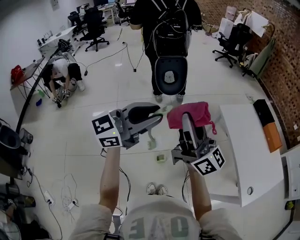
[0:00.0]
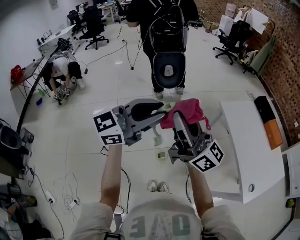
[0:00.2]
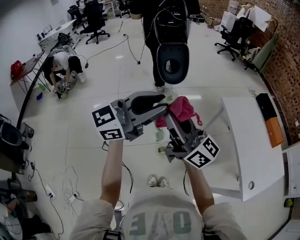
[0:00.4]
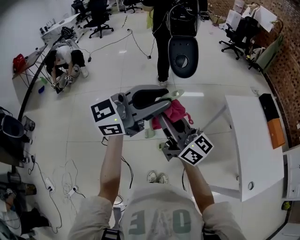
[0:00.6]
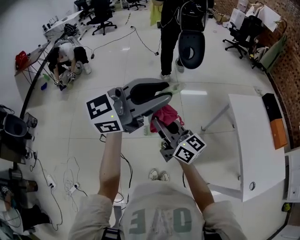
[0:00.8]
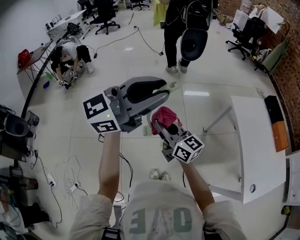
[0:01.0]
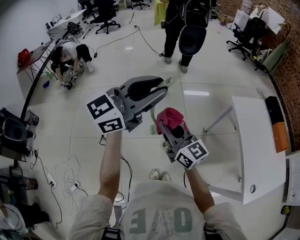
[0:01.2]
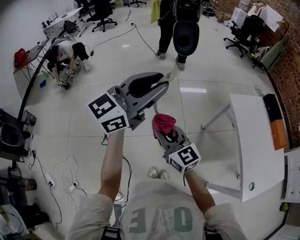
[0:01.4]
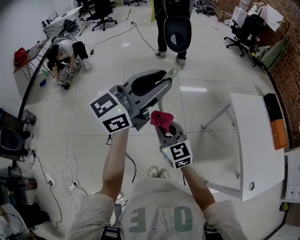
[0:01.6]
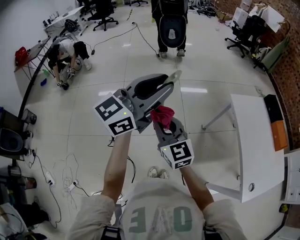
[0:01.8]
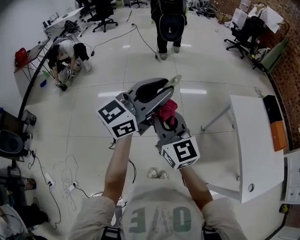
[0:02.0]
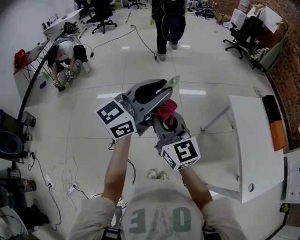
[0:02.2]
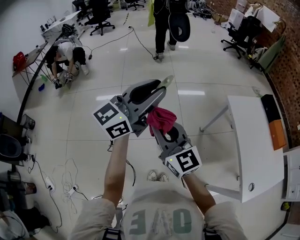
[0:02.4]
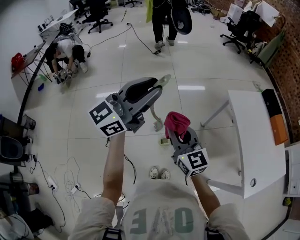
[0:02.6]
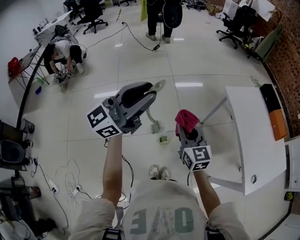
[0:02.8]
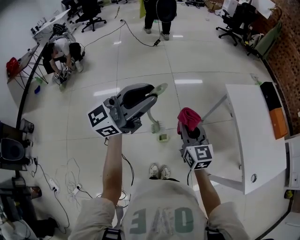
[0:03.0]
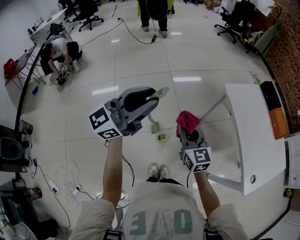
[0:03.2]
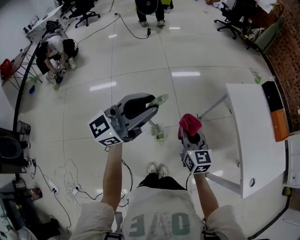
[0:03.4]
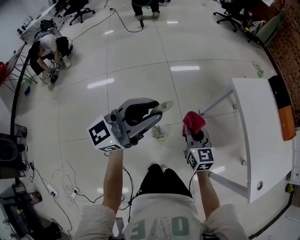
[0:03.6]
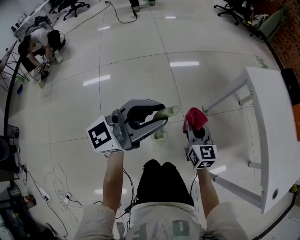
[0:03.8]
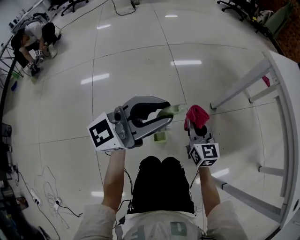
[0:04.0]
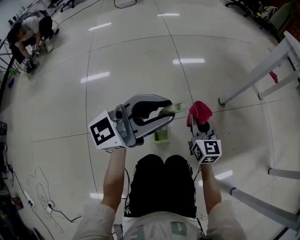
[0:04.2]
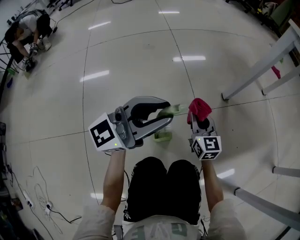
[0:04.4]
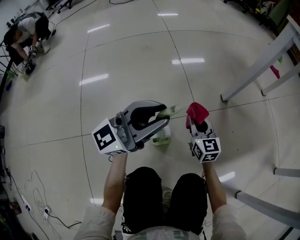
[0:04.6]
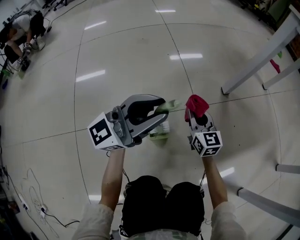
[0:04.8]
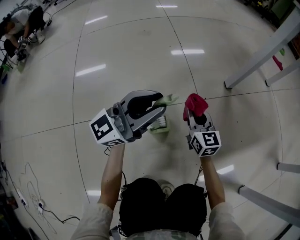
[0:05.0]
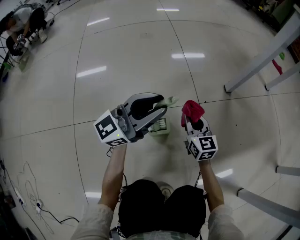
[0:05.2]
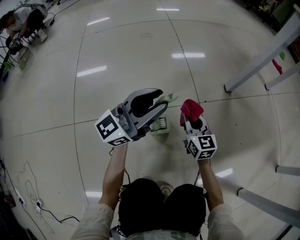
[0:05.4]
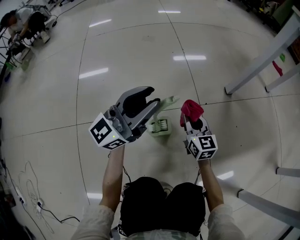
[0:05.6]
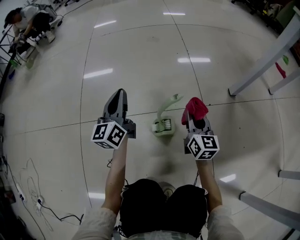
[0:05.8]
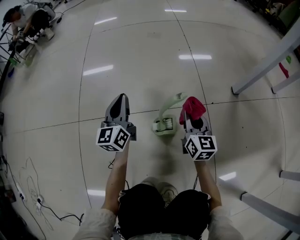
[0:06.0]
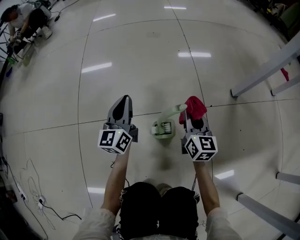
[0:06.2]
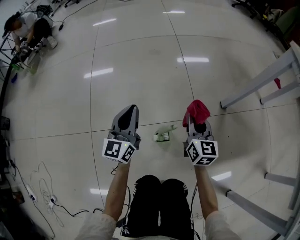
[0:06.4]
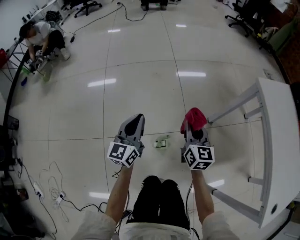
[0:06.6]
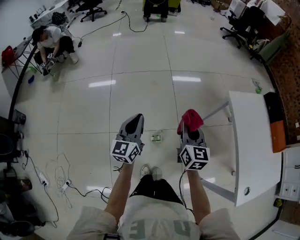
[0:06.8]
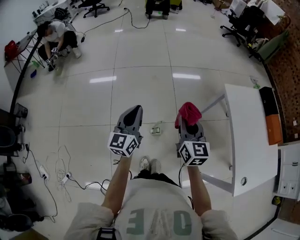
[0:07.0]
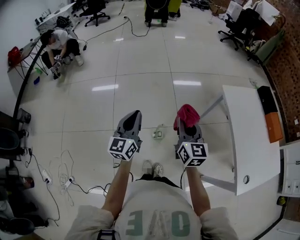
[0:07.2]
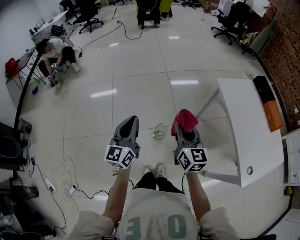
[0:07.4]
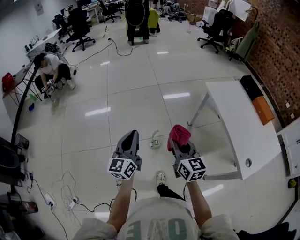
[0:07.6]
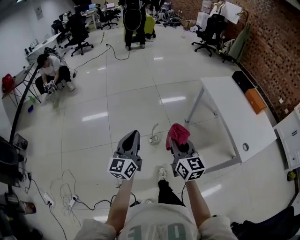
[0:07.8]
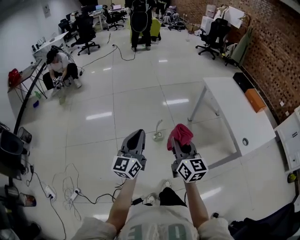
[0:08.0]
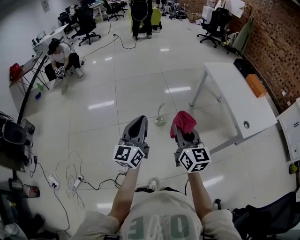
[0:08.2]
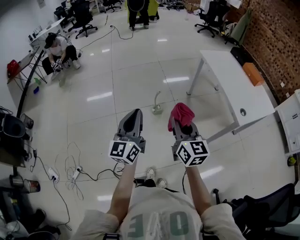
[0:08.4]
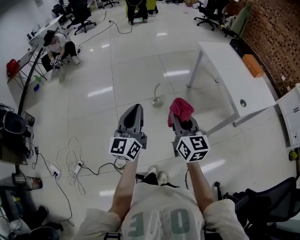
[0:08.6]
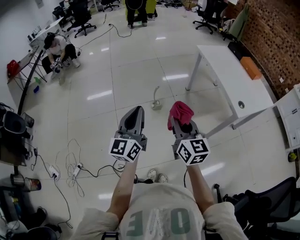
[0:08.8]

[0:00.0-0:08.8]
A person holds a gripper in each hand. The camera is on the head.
0:00.0 to 0:01.4: The right gripper heads downward and to the left, covering roughly 20 cm, and tilts its fingers roughly 40 degrees downward.
0:01.4 to 0:03.0: The right gripper heads to the right and forward, covering roughly 15 cm, and turns by approximately 30 degrees.
0:03.0 to 0:04.4: The grippers both shift downward by approximately 70 cm.
0:04.4 to 0:05.8: The right gripper moves downward, approximately 10 cm, while the left gripper shifts roughly 20 cm downward, and swivels roughly 60 degrees.
0:05.8 to 0:07.4: Both grippers travel together upward, roughly 70 cm.
0:07.4 to 0:08.8: The pair of grippers is taken backward, approximately 40 cm.

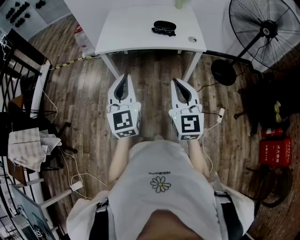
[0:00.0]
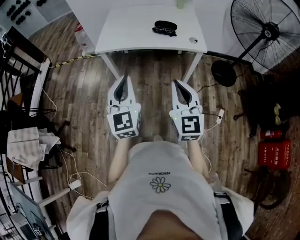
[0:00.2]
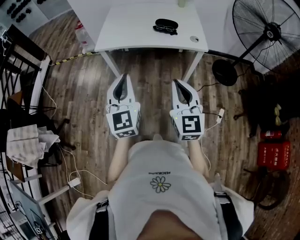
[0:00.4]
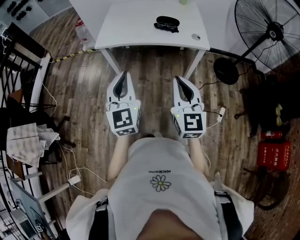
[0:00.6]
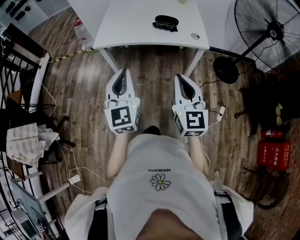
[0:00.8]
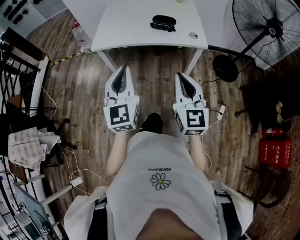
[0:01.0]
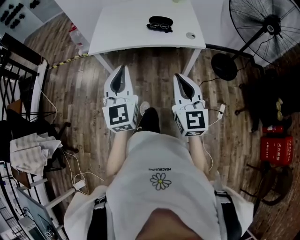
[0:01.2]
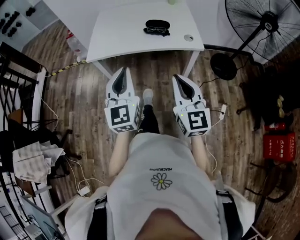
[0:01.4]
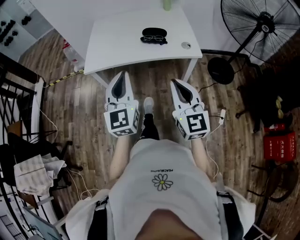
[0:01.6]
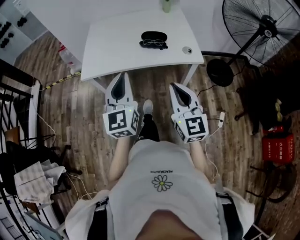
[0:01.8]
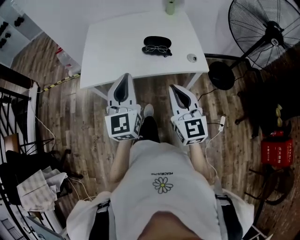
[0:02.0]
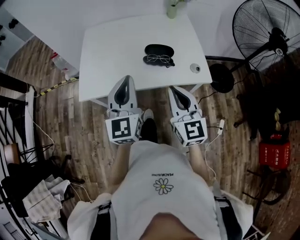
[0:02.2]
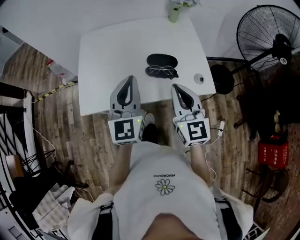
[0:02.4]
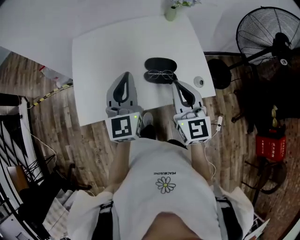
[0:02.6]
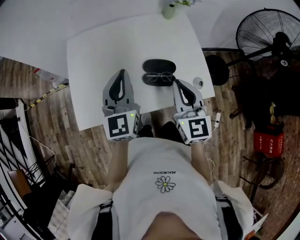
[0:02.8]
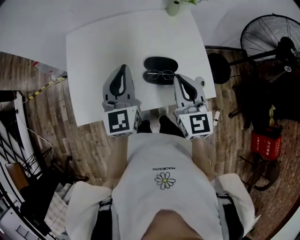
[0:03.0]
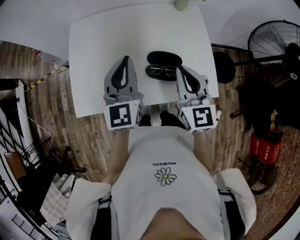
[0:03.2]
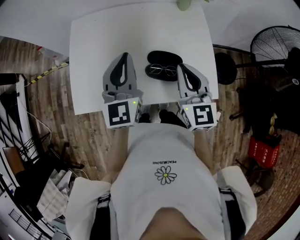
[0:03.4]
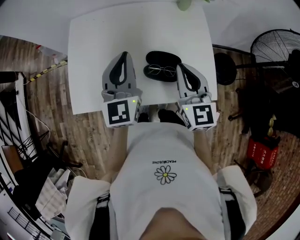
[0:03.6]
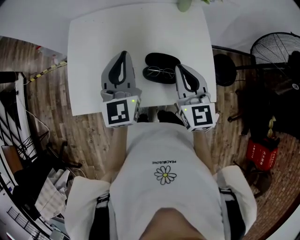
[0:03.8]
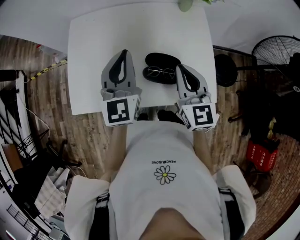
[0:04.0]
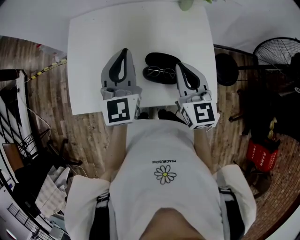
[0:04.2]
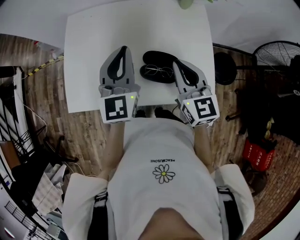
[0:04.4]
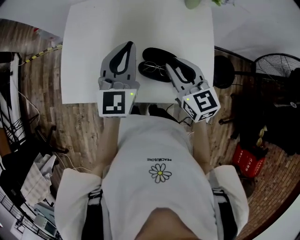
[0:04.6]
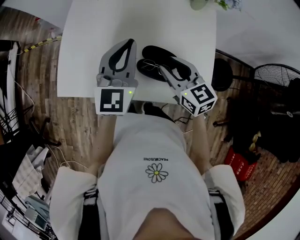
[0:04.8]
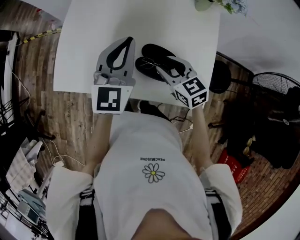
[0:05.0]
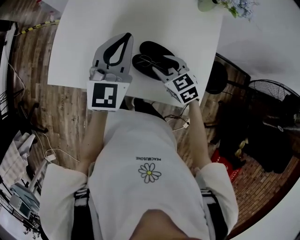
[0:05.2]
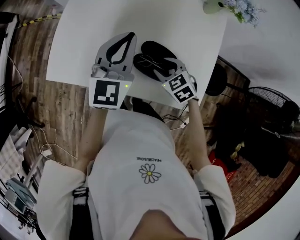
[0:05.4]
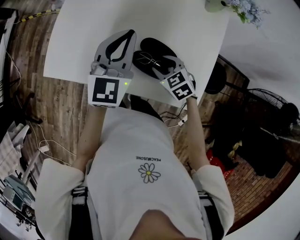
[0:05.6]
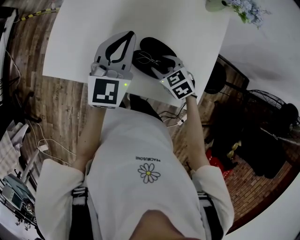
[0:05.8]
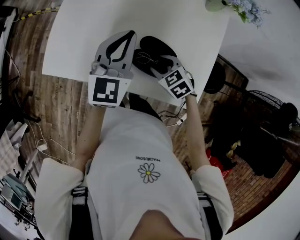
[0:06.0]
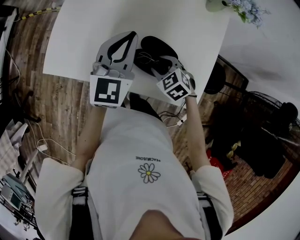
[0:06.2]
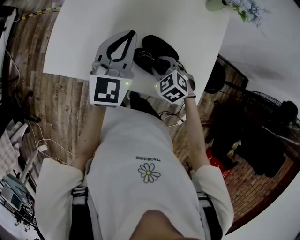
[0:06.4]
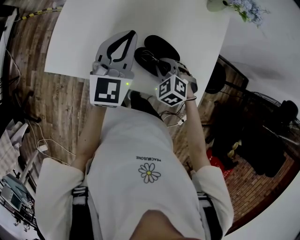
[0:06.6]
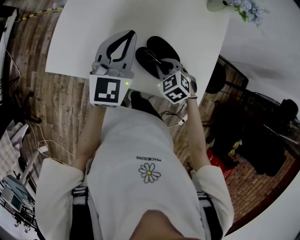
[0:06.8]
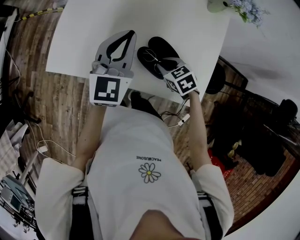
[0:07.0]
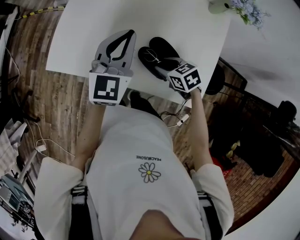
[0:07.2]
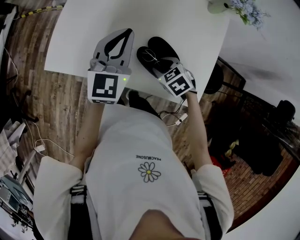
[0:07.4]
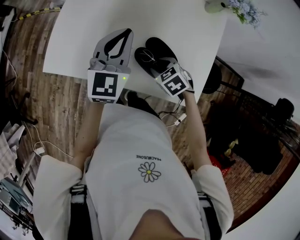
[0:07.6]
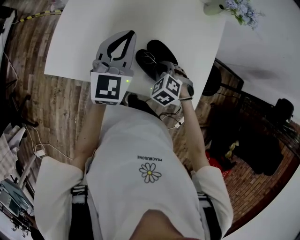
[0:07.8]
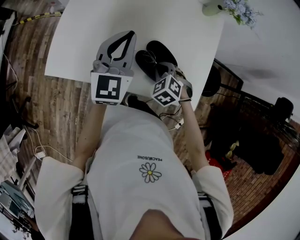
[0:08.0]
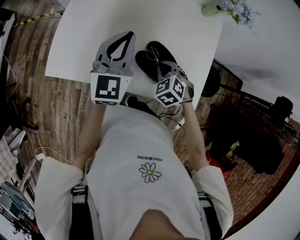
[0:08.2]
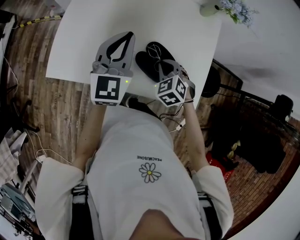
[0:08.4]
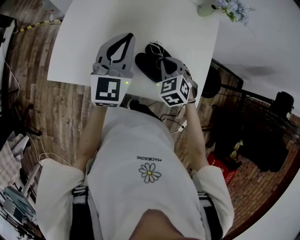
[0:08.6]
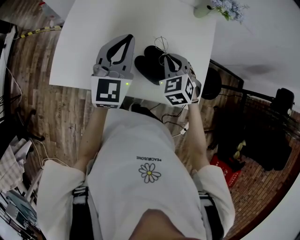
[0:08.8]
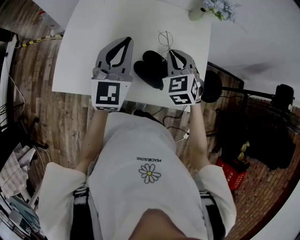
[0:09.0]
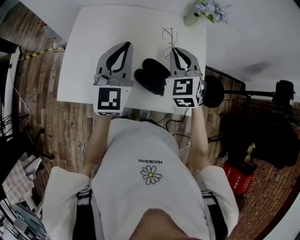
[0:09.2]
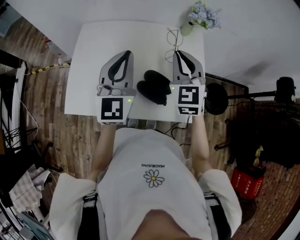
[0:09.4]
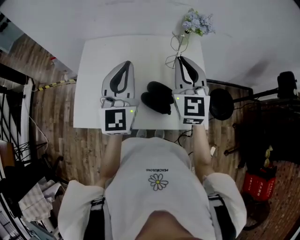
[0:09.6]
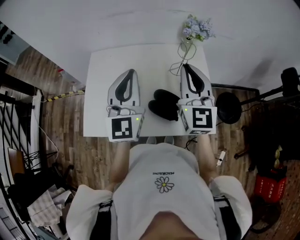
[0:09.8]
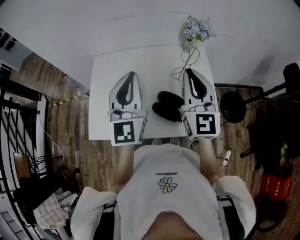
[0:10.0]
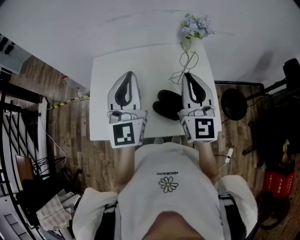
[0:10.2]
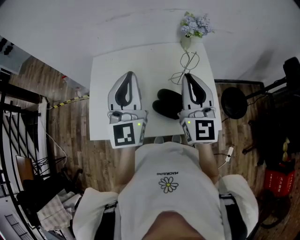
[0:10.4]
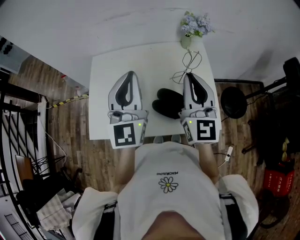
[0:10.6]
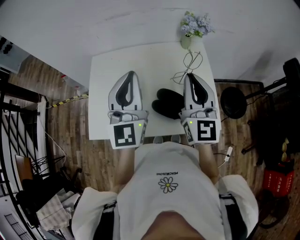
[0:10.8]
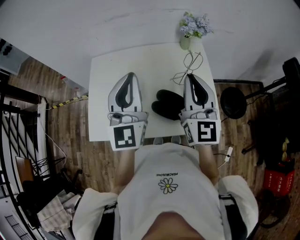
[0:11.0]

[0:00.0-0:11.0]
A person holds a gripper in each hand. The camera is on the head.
0:00.0 to 0:01.6: Both grippers travel together forward, some 15 cm.
0:01.6 to 0:03.2: Both grippers are carried forward, approximately 40 cm.
0:03.2 to 0:04.8: The right gripper travels downward and forward by about 10 cm, changes its angle by approximately 40 degrees, and opens up. Meanwhile the left gripper shifts by approximately 5 cm.
0:04.8 to 0:06.2: The right gripper travels downward by about 15 cm, and tilts its fingers approximately 30 degrees downward, while the left gripper goes some 5 cm downward.
0:06.2 to 0:07.8: The right gripper rotates some 20 degrees, and closes its fingers.
0:07.8 to 0:09.4: The right gripper heads upward, covering roughly 30 cm, and angles its fingers upward, by some 50 degrees; the left gripper is displaced upward by some 10 cm.
0:09.4 to 0:11.0: The left gripper heads upward, covering roughly 5 cm, while the right gripper shifts roughly 10 cm upward and backward, and turns by some 30 degrees.

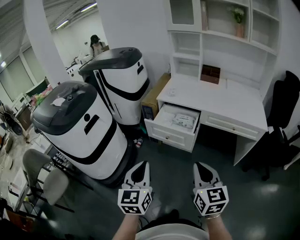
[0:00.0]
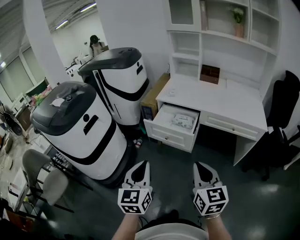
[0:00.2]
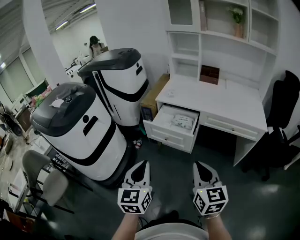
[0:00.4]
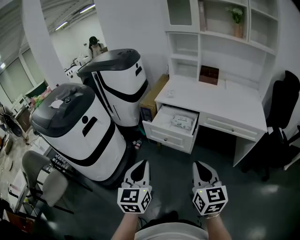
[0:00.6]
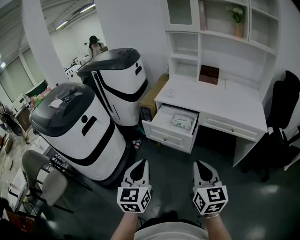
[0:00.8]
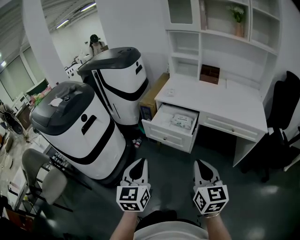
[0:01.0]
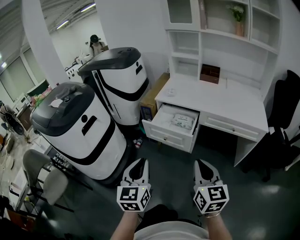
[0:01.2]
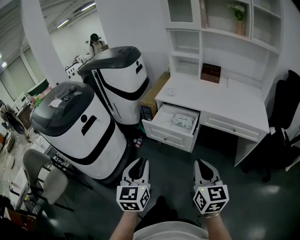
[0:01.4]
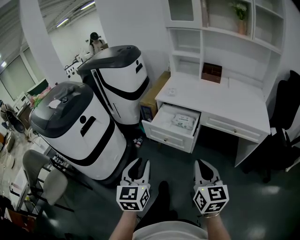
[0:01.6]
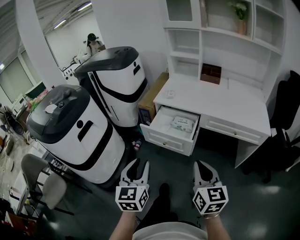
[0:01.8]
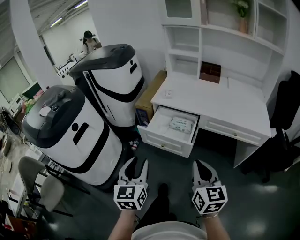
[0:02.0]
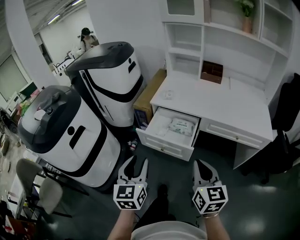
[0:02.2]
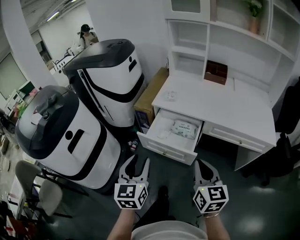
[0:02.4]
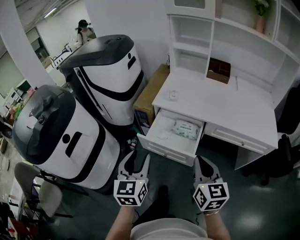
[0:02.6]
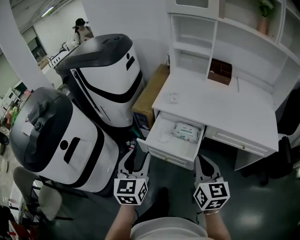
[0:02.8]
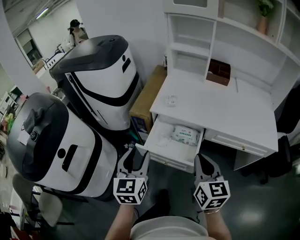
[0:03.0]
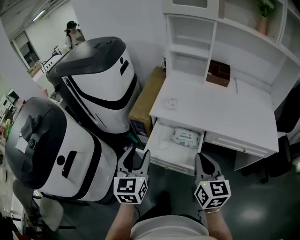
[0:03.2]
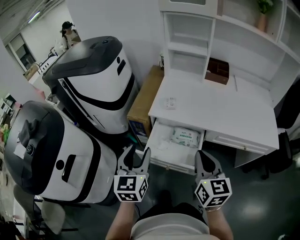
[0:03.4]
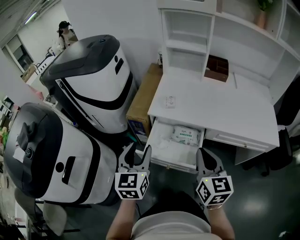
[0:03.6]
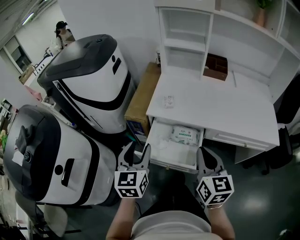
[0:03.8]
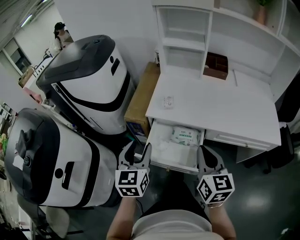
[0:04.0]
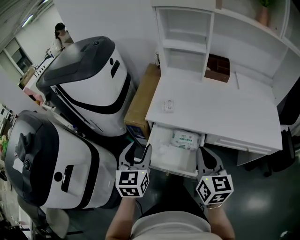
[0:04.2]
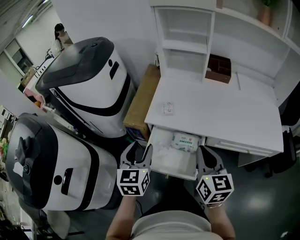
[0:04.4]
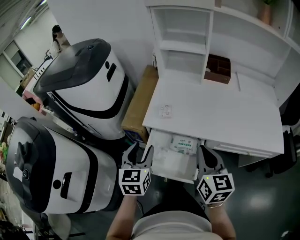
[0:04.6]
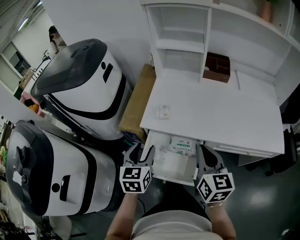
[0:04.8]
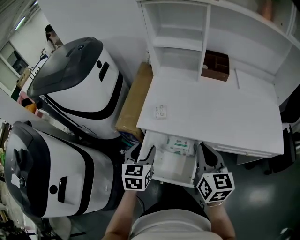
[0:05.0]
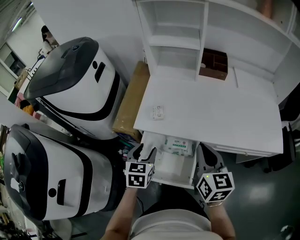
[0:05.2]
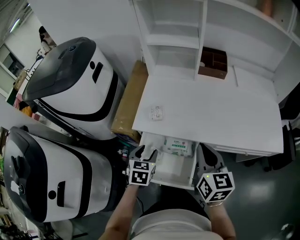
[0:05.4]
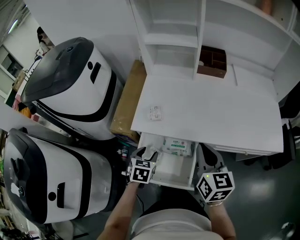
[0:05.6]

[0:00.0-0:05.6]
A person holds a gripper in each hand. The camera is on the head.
0:00.0 to 0:01.4: The grippers stay close to where they were, moving slightly.
0:01.4 to 0:02.8: Both grippers travel together forward, about 25 cm. The left gripper opens its fingers.
0:02.8 to 0:04.2: Both grippers move forward, approximately 15 cm.
0:04.2 to 0:05.6: The left gripper is displaced downward and forward by some 20 cm, and angles its fingers downward, by roughly 30 degrees; the right gripper goes about 10 cm forward and to the right.
